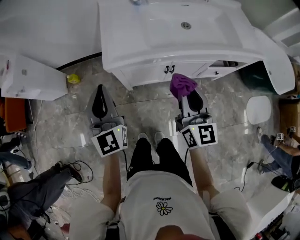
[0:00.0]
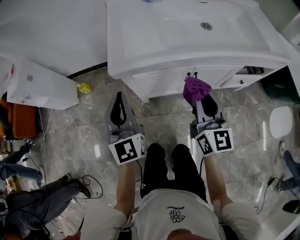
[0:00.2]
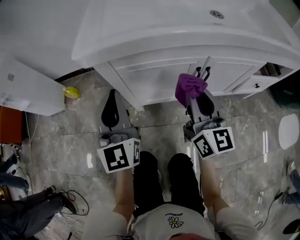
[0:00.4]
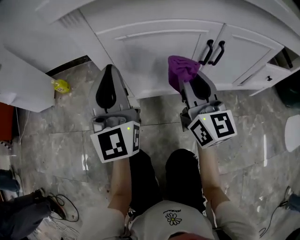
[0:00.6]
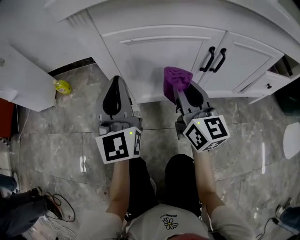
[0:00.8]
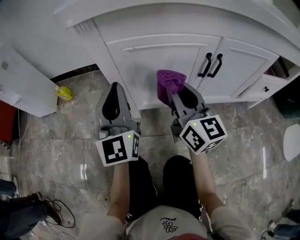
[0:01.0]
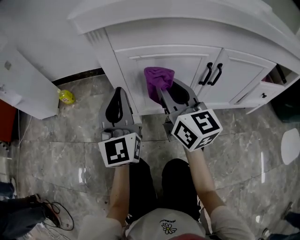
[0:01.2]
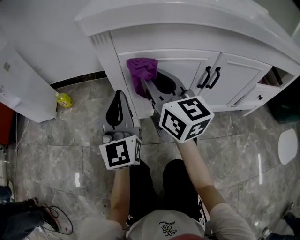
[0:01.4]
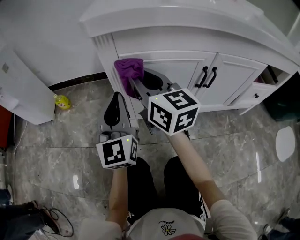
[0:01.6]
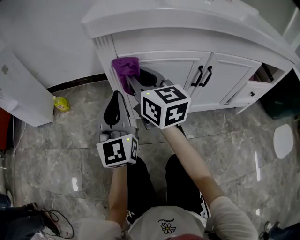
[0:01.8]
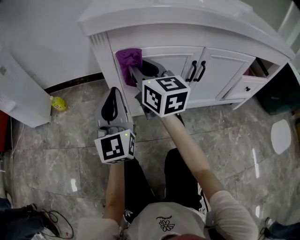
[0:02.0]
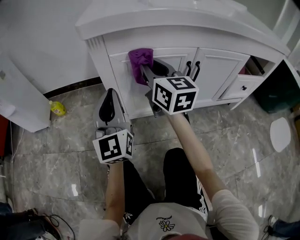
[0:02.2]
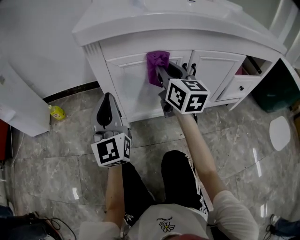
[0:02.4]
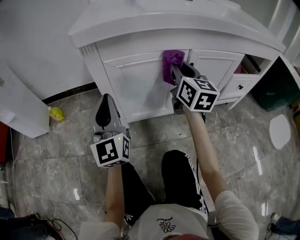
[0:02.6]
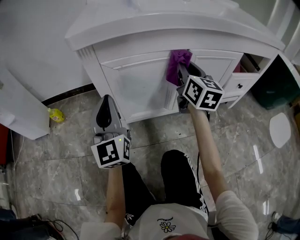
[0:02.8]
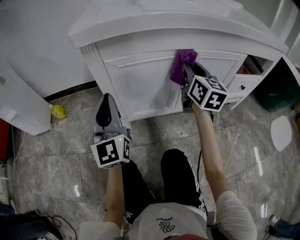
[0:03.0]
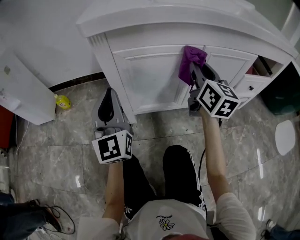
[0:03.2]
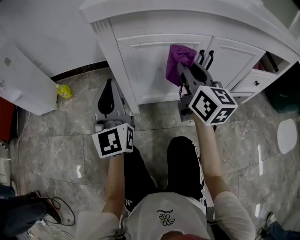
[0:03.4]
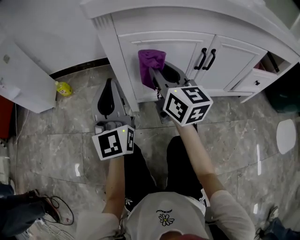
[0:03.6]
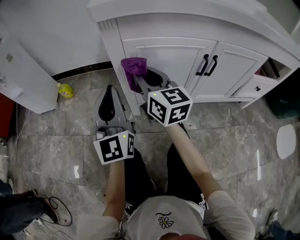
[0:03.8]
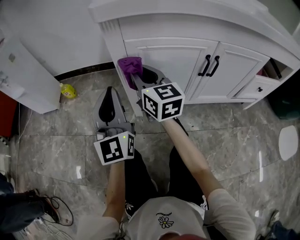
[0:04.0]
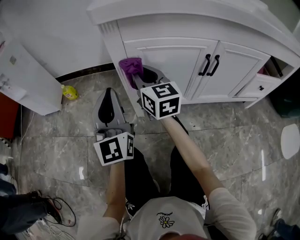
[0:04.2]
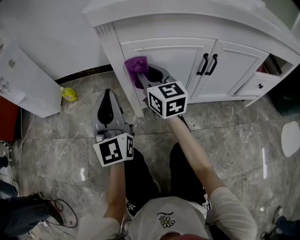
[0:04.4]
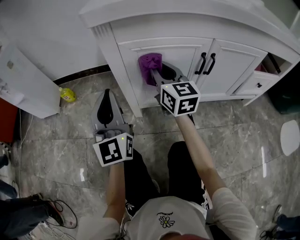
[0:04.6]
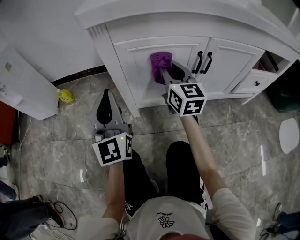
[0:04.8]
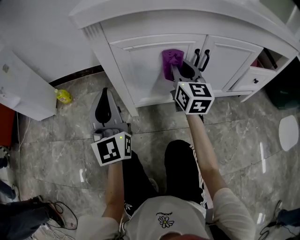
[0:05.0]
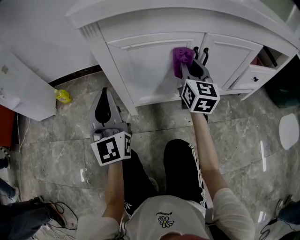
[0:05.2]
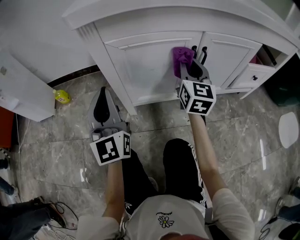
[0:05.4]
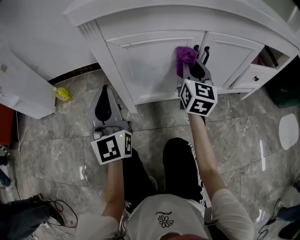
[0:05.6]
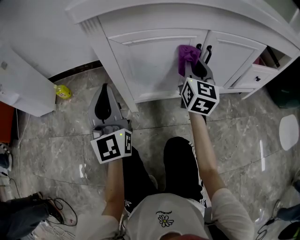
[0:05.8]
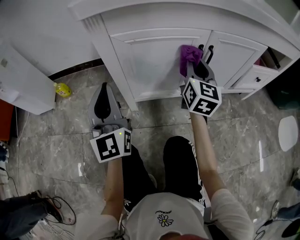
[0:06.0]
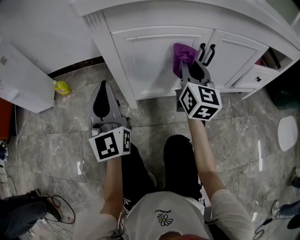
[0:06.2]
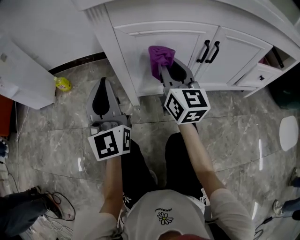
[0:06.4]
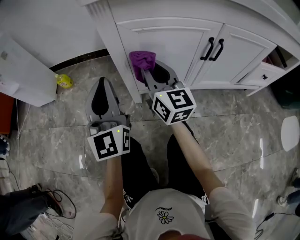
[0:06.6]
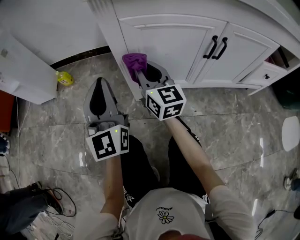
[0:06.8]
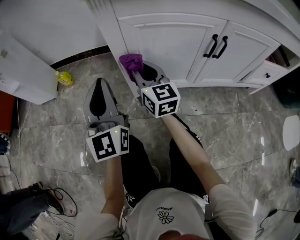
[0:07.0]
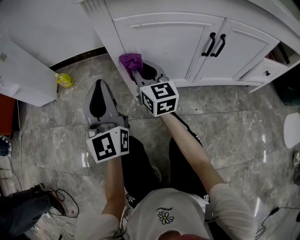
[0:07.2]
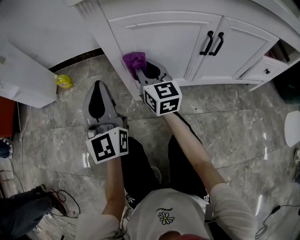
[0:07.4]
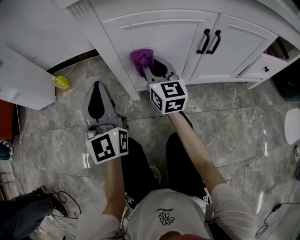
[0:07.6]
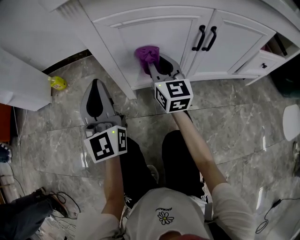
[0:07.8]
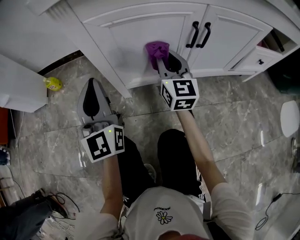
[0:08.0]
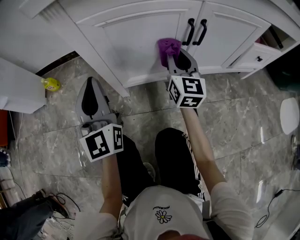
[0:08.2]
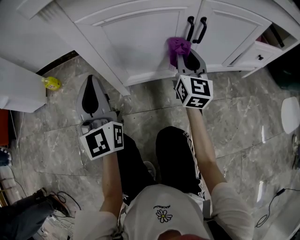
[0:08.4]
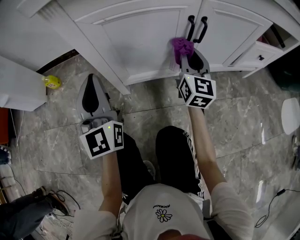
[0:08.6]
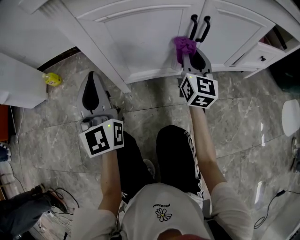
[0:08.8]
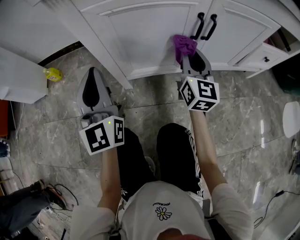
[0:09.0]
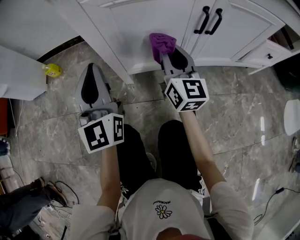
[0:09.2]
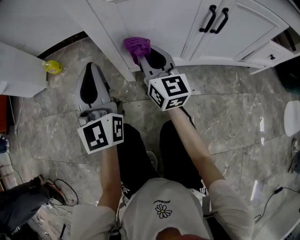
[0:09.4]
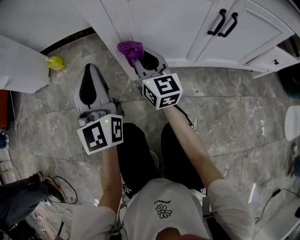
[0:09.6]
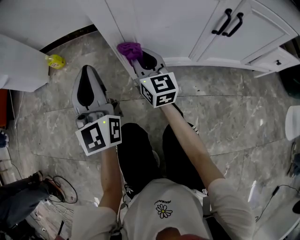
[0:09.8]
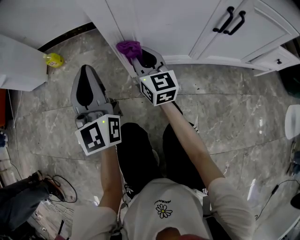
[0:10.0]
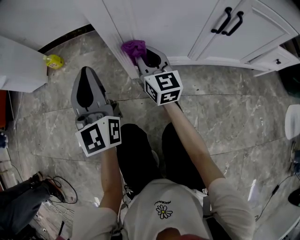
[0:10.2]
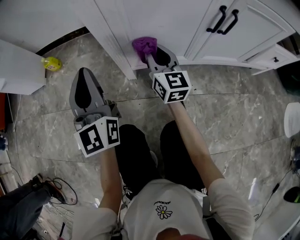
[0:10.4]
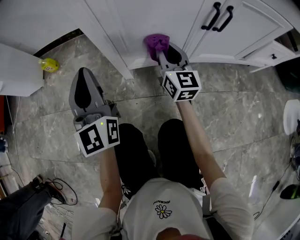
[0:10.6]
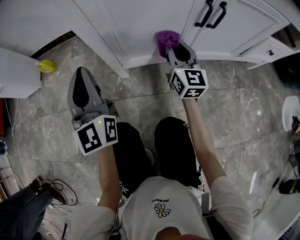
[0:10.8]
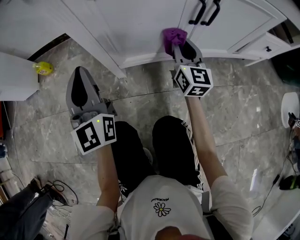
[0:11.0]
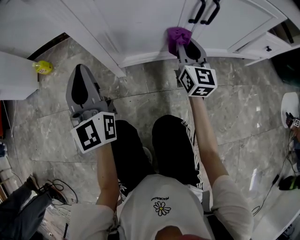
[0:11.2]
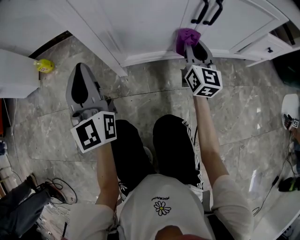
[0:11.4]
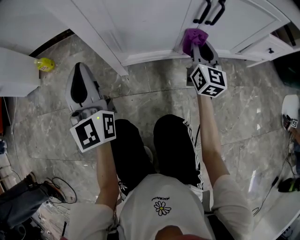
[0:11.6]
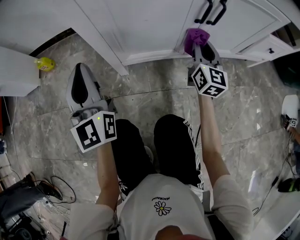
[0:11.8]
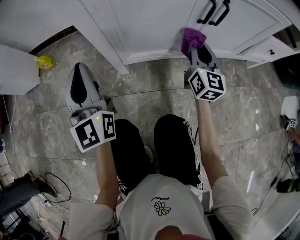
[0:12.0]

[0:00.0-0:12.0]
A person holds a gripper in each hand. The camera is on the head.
0:00.0 to 0:01.6: The left gripper moves downward, roughly 35 cm. The right gripper goes approximately 40 cm downward, forward and to the left, and turns by about 20 degrees.
0:01.6 to 0:03.0: The right gripper travels to the right by approximately 25 cm, and swivels roughly 30 degrees.
0:03.0 to 0:04.4: The right gripper is displaced to the left by approximately 25 cm, and swivels about 30 degrees.
0:04.4 to 0:06.0: The right gripper heads to the right, covering roughly 20 cm, and turns by about 30 degrees.
0:06.0 to 0:07.6: The right gripper shifts roughly 20 cm to the left and downward, and rotates approximately 30 degrees.
0:07.6 to 0:09.0: The right gripper is displaced to the right by about 15 cm.
0:09.0 to 0:10.4: The left gripper goes approximately 5 cm to the left. The right gripper goes roughly 15 cm to the left and downward.
0:10.4 to 0:12.0: The right gripper goes approximately 20 cm to the right.

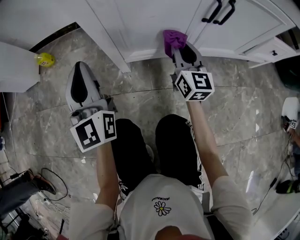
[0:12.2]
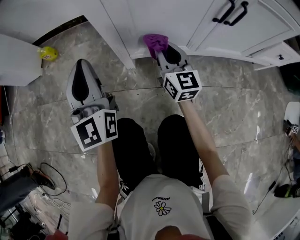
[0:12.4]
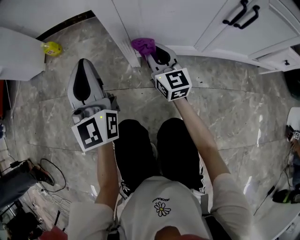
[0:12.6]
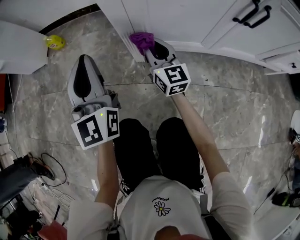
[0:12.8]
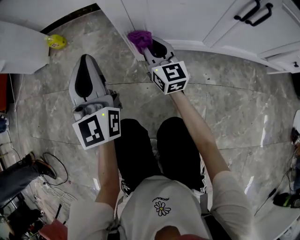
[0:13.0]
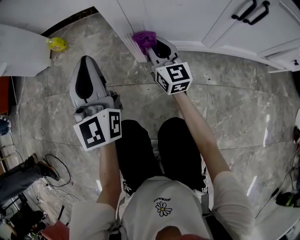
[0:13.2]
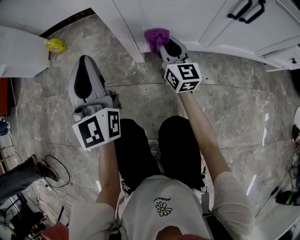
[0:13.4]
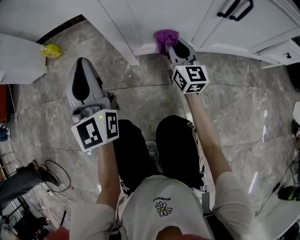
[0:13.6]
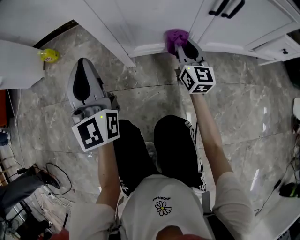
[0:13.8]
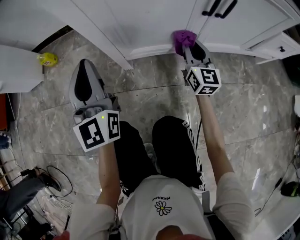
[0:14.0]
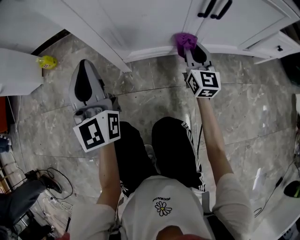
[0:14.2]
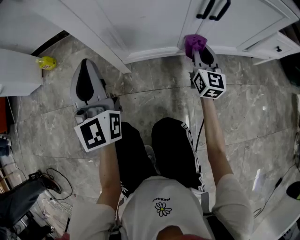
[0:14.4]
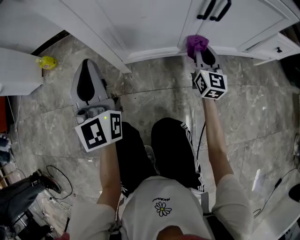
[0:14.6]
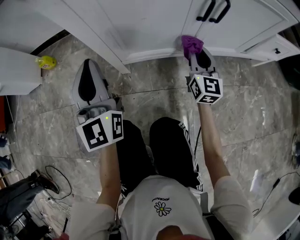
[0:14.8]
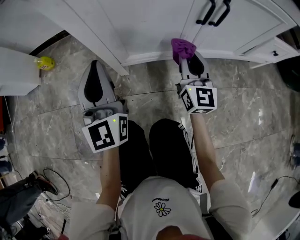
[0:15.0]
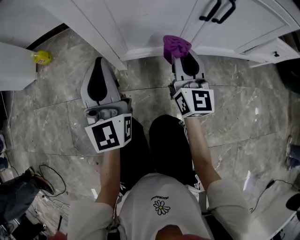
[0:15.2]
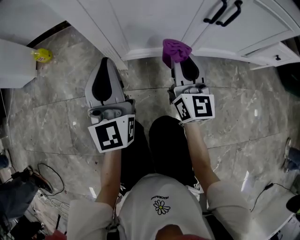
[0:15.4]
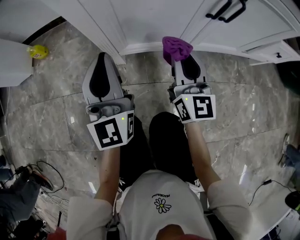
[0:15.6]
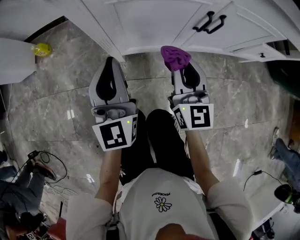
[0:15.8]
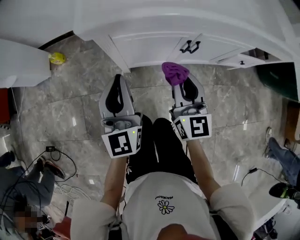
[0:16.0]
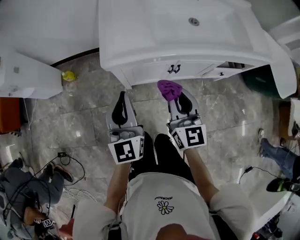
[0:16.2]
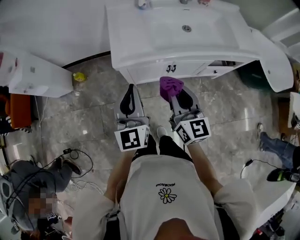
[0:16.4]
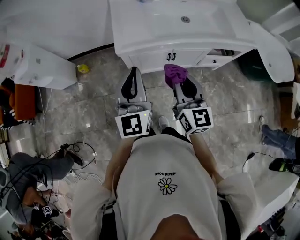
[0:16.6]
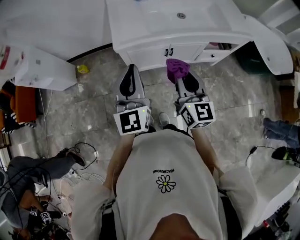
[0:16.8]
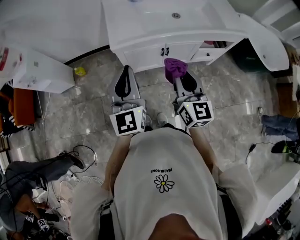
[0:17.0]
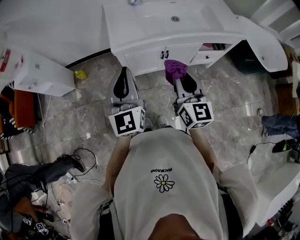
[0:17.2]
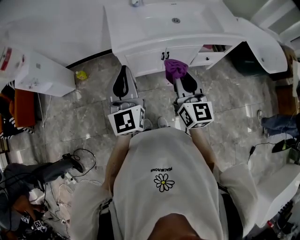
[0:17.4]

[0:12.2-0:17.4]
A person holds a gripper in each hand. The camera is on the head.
0:12.2 to 0:14.0: The right gripper is displaced downward by some 5 cm, and travels to the left and back again, roughly 15 cm each way.
0:14.0 to 0:15.6: The right gripper travels upward, backward and to the left by roughly 10 cm, while the left gripper travels to the right by some 5 cm.
0:15.6 to 0:17.4: The grippers both shift upward by about 60 cm.

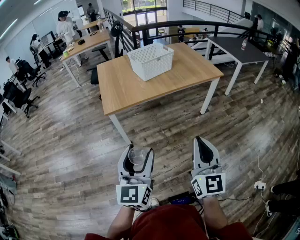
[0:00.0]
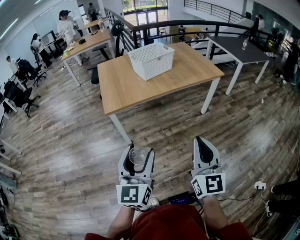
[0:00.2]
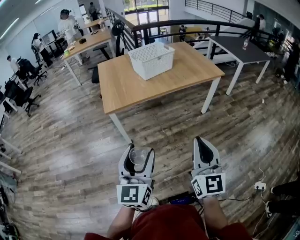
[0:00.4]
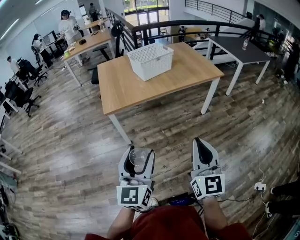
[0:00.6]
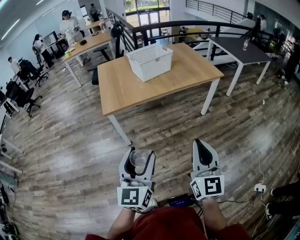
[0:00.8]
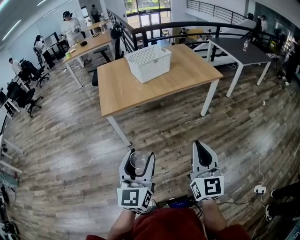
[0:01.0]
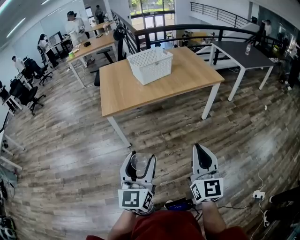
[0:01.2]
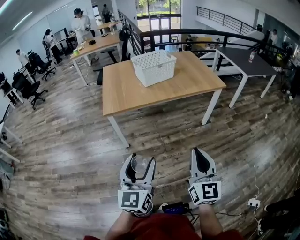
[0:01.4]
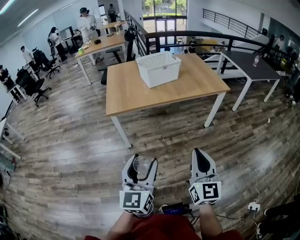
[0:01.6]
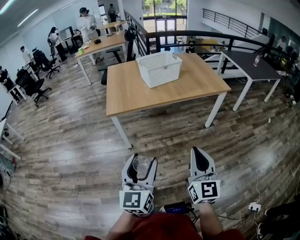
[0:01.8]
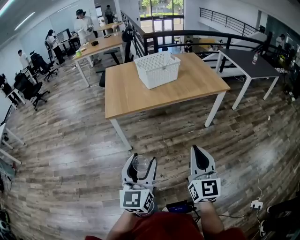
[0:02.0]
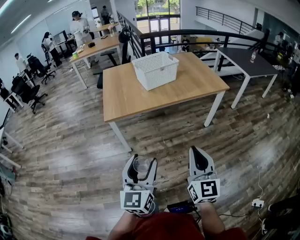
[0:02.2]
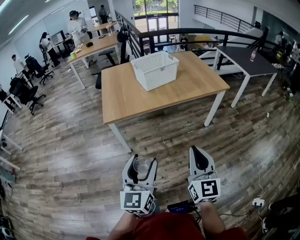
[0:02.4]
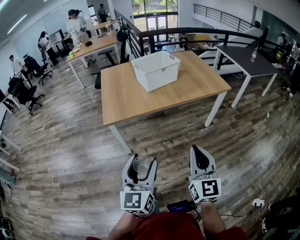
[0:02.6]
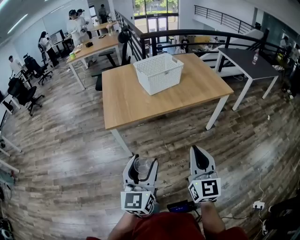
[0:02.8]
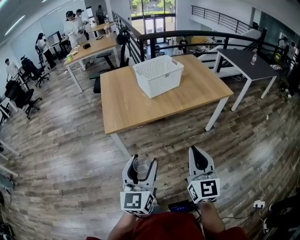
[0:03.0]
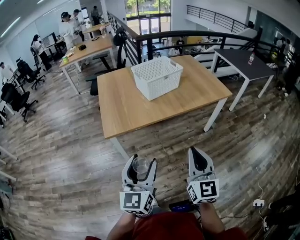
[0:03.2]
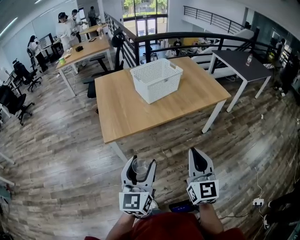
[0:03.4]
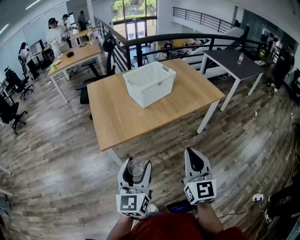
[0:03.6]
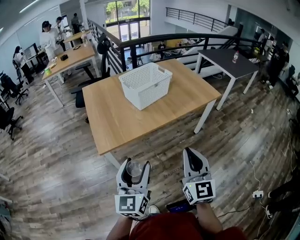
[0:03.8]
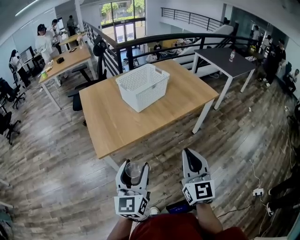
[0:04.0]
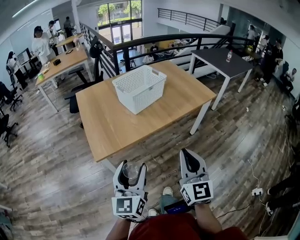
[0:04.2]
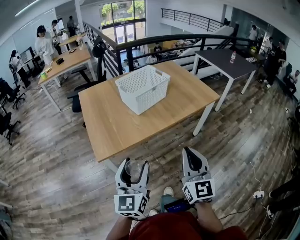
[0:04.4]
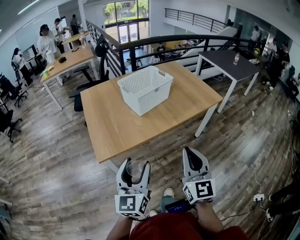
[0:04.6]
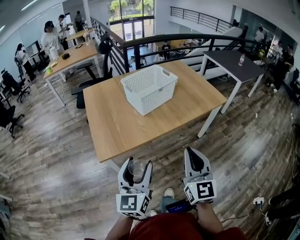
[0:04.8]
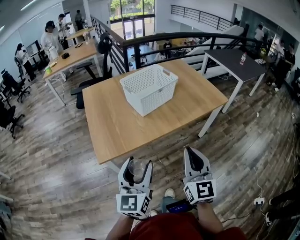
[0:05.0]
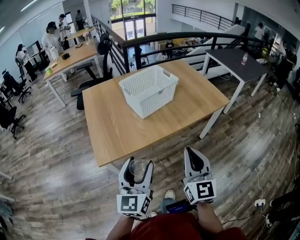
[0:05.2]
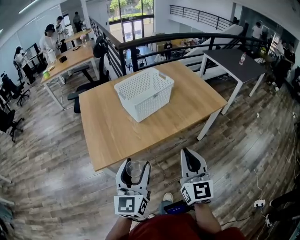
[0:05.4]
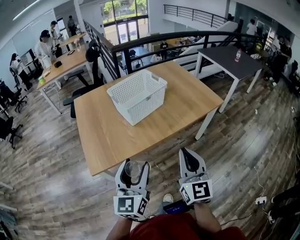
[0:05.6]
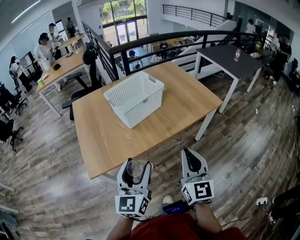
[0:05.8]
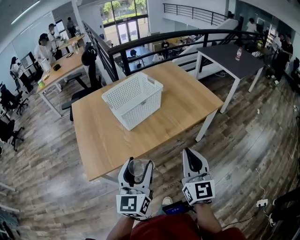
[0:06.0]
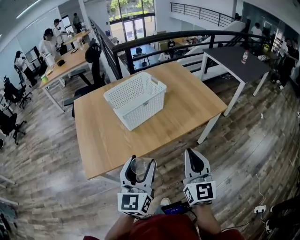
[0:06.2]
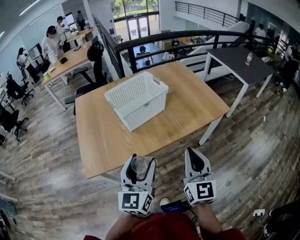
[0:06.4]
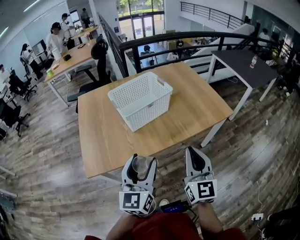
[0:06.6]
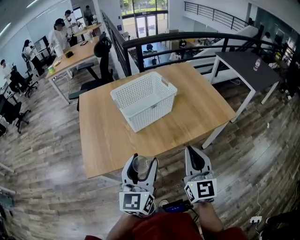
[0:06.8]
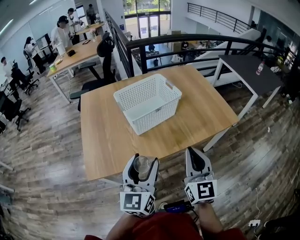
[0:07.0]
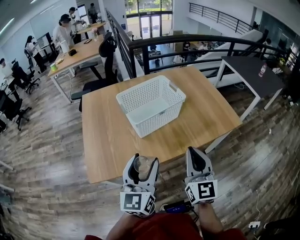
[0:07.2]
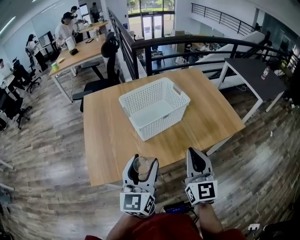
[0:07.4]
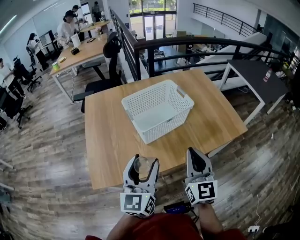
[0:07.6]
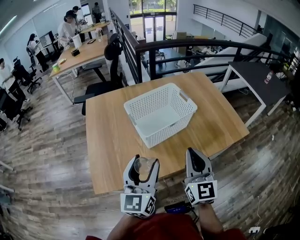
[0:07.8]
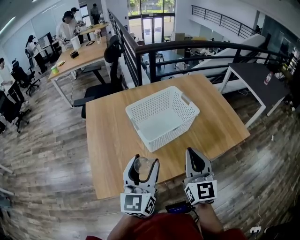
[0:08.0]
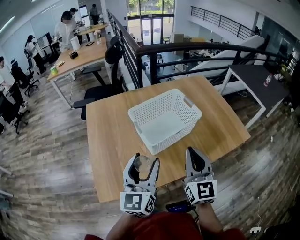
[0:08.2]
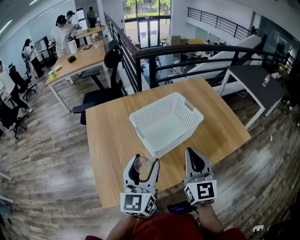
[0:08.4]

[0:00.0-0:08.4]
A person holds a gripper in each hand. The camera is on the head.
0:00.0 to 0:01.4: The grippers both shift to the right by roughly 5 cm.
0:01.4 to 0:02.8: The left gripper shifts some 10 cm forward. The right gripper is displaced forward and to the left by about 15 cm.
0:02.8 to 0:04.2: Both grippers travel together forward and to the left, about 15 cm.
0:04.2 to 0:05.6: The left gripper moves forward and to the right, some 10 cm. The right gripper moves forward, roughly 10 cm.
0:05.6 to 0:07.0: Both grippers travel together forward, approximately 10 cm.
0:07.0 to 0:08.4: The two grippers go some 15 cm forward and to the left.
